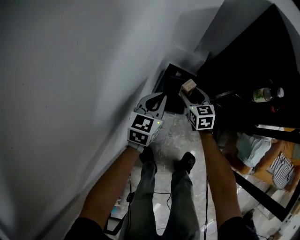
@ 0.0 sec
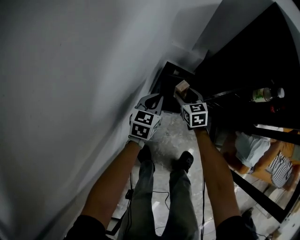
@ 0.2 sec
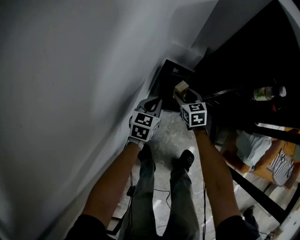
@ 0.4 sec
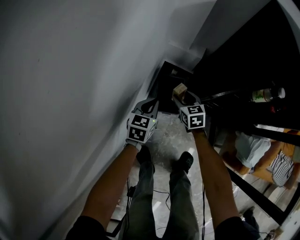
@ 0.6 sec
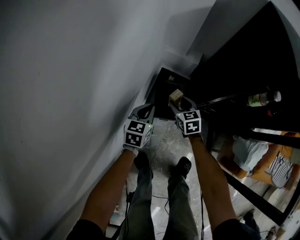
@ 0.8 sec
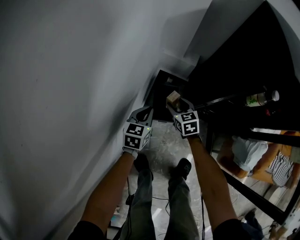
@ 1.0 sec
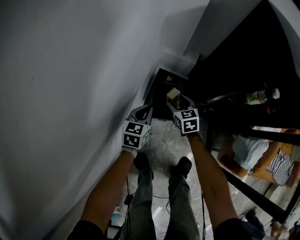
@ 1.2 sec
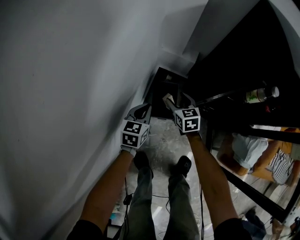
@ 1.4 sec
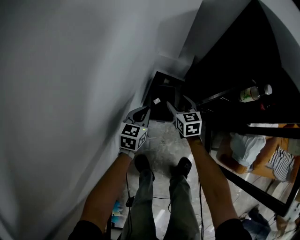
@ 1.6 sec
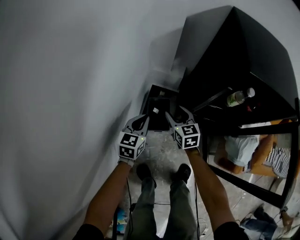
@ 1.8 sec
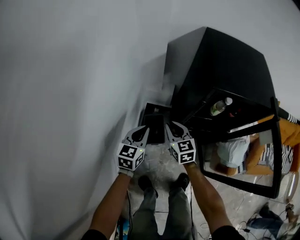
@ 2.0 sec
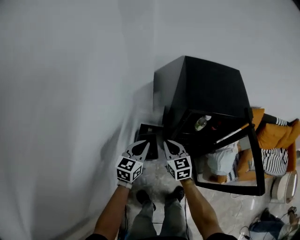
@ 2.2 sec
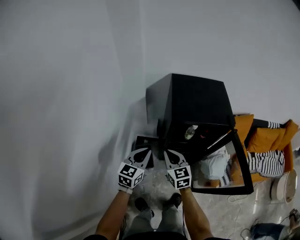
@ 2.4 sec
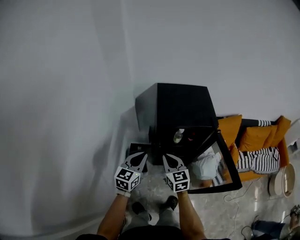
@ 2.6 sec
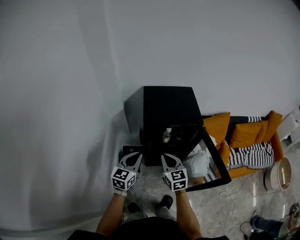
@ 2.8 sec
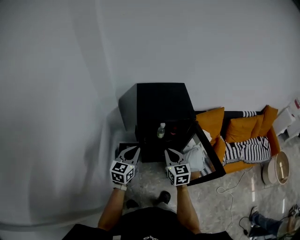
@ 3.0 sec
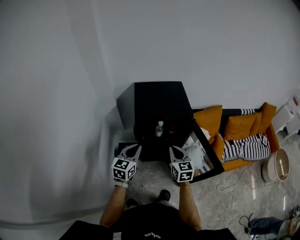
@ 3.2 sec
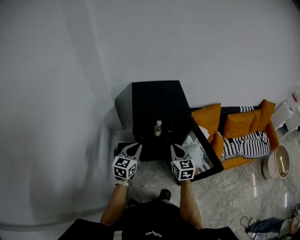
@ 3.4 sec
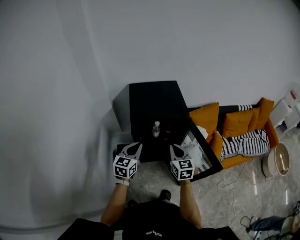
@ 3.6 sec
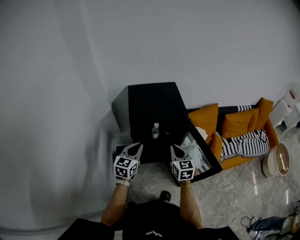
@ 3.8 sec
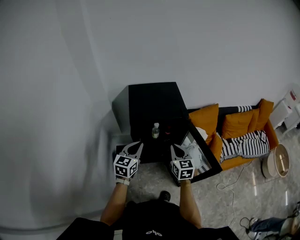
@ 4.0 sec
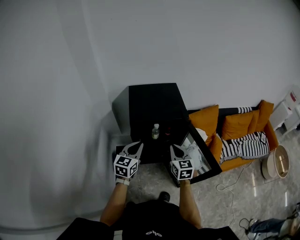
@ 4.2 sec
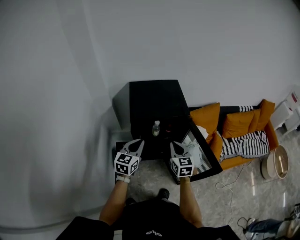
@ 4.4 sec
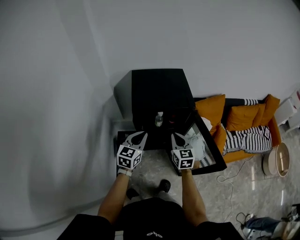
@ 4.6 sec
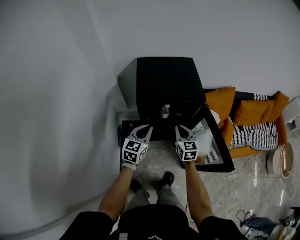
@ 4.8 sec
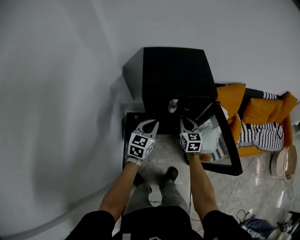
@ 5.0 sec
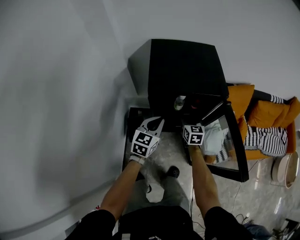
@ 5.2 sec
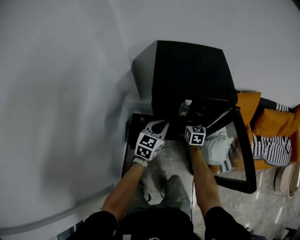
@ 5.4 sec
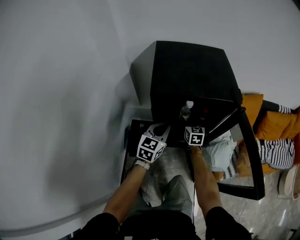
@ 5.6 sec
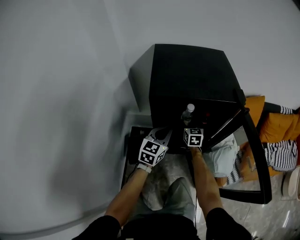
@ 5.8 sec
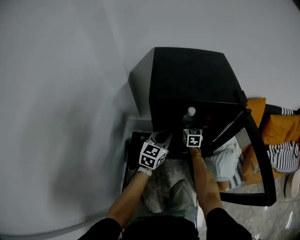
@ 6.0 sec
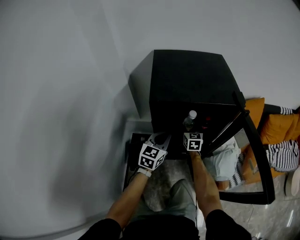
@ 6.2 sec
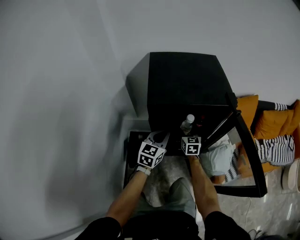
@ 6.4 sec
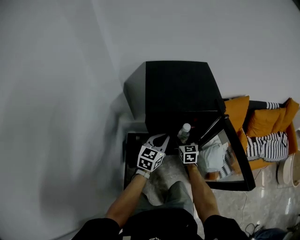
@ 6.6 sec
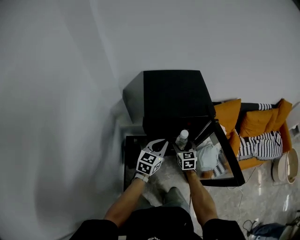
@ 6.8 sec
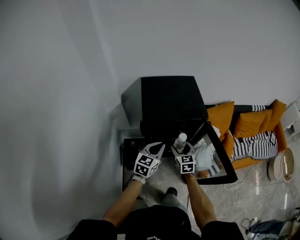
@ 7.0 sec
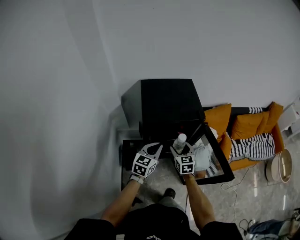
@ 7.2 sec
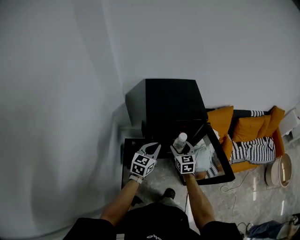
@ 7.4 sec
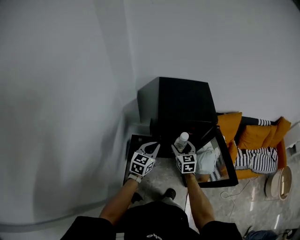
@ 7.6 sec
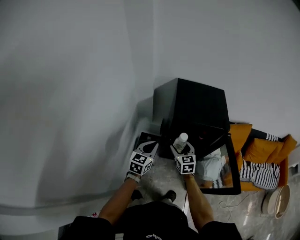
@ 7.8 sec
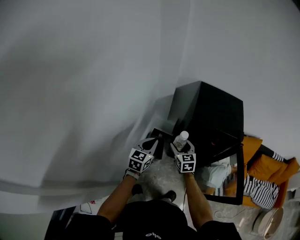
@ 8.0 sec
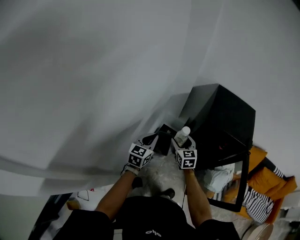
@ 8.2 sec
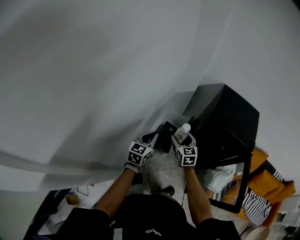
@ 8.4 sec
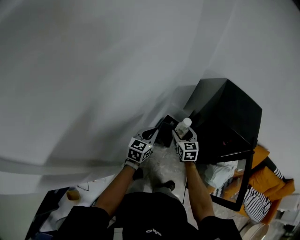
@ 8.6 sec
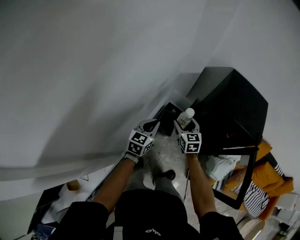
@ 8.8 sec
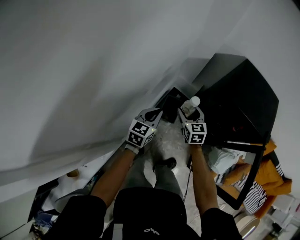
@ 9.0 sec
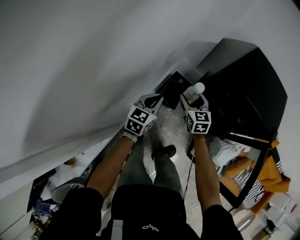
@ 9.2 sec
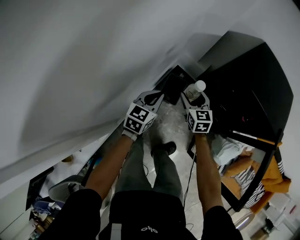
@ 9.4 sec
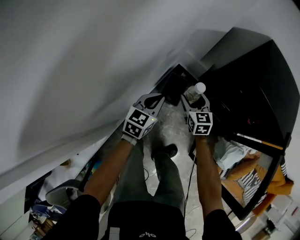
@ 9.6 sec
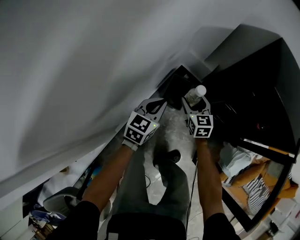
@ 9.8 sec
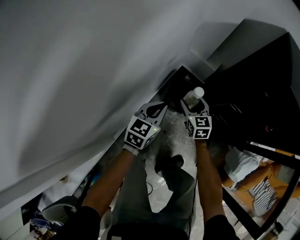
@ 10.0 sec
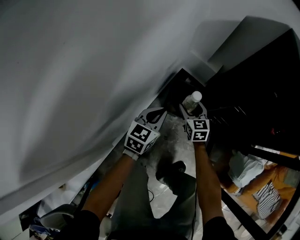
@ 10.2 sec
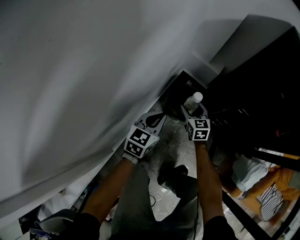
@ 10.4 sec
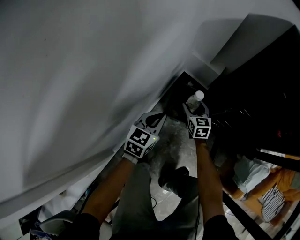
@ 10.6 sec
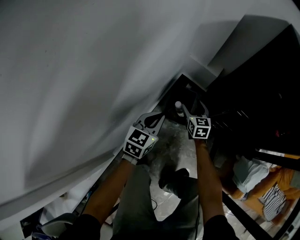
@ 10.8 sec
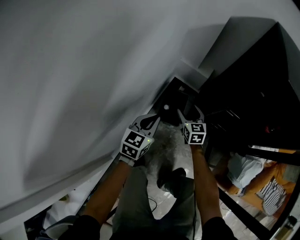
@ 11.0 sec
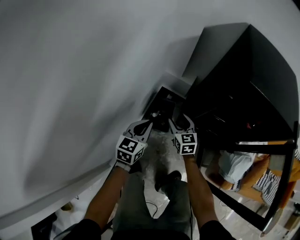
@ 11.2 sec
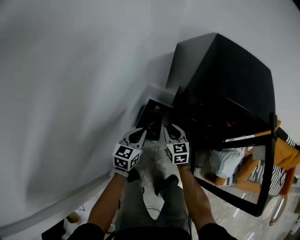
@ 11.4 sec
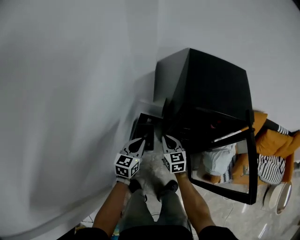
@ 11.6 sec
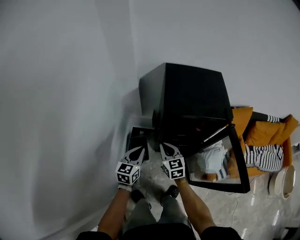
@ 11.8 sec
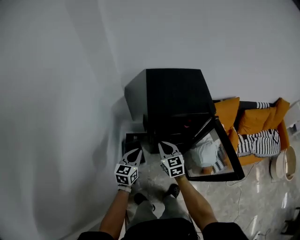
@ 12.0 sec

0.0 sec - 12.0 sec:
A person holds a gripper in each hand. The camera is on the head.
0.0 sec - 1.6 sec: The left gripper heads downward, covering some 5 cm.
1.6 sec - 3.0 sec: The grippers both shift upward and to the right by some 60 cm. The left gripper rotates about 30 degrees, while the right gripper changes its angle by roughly 30 degrees, and closes its fingers.
3.0 sec - 4.4 sec: The grippers both shift to the right by approximately 5 cm.
4.4 sec - 6.0 sec: The grippers both shift downward and forward by about 35 cm. The right gripper opens its fingers.
6.0 sec - 7.6 sec: Both grippers move upward and backward, some 30 cm.
7.6 sec - 9.0 sec: The right gripper moves some 30 cm, and turns by about 30 degrees; the left gripper moves about 25 cm, and rotates about 30 degrees.
9.0 sec - 10.4 sec: The grippers both shift downward by roughly 35 cm.
10.4 sec - 12.0 sec: The two grippers go about 40 cm upward and to the right. The right gripper swivels about 30 degrees, and closes; the left gripper swivels some 20 degrees.

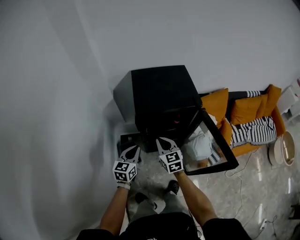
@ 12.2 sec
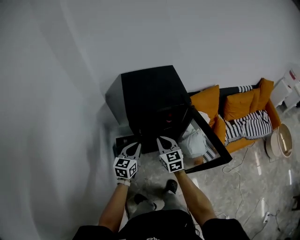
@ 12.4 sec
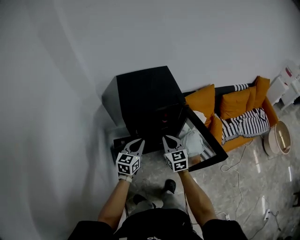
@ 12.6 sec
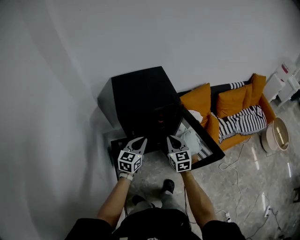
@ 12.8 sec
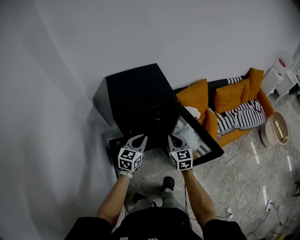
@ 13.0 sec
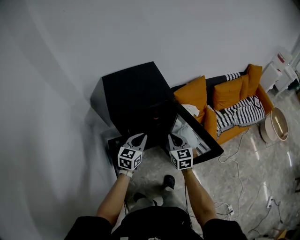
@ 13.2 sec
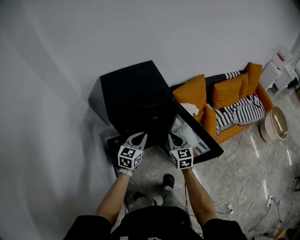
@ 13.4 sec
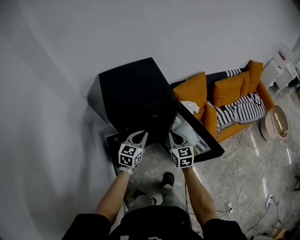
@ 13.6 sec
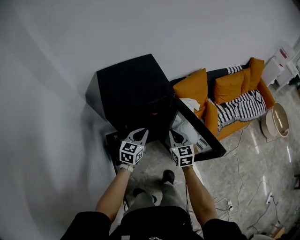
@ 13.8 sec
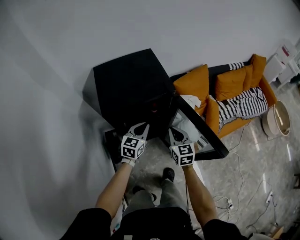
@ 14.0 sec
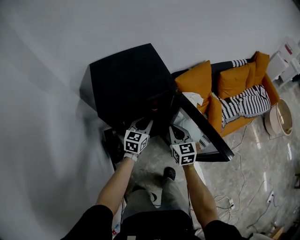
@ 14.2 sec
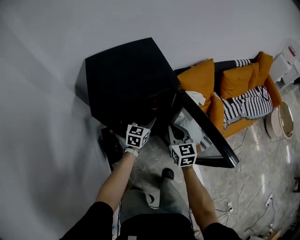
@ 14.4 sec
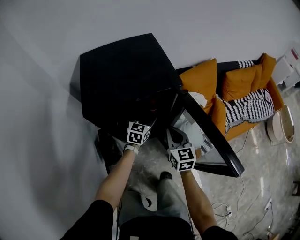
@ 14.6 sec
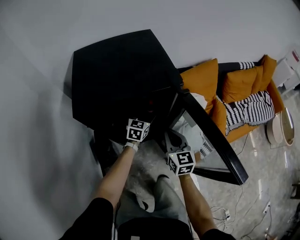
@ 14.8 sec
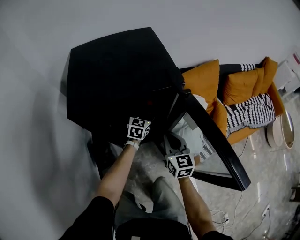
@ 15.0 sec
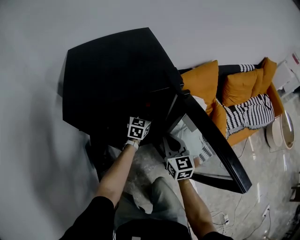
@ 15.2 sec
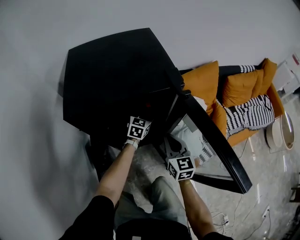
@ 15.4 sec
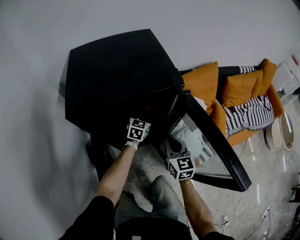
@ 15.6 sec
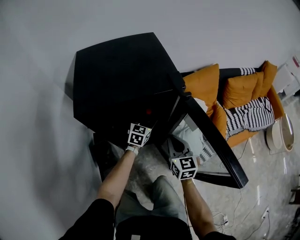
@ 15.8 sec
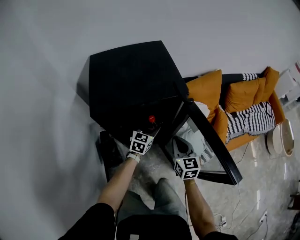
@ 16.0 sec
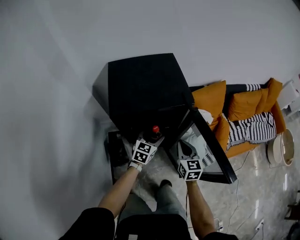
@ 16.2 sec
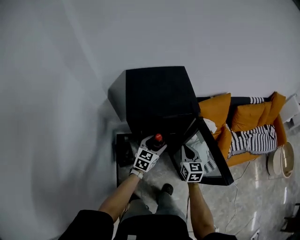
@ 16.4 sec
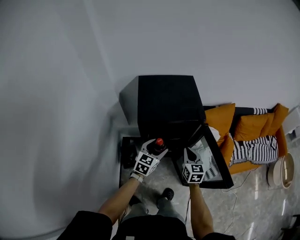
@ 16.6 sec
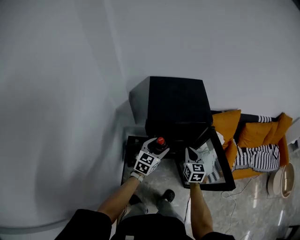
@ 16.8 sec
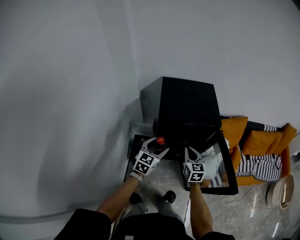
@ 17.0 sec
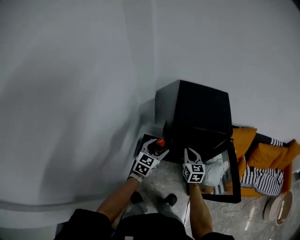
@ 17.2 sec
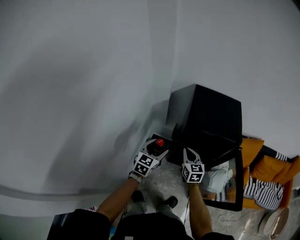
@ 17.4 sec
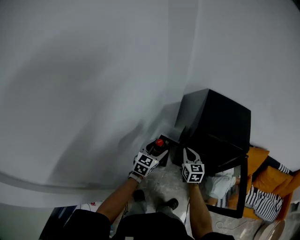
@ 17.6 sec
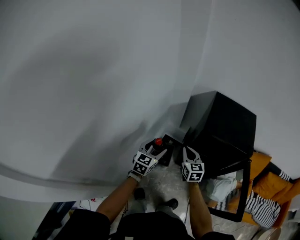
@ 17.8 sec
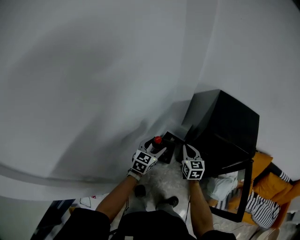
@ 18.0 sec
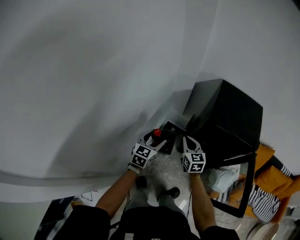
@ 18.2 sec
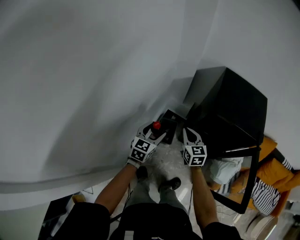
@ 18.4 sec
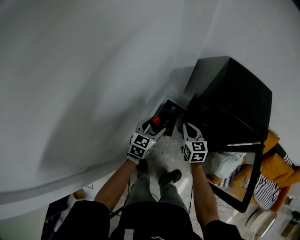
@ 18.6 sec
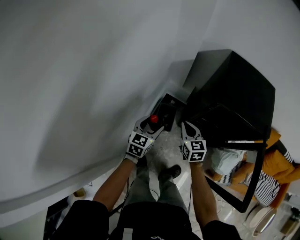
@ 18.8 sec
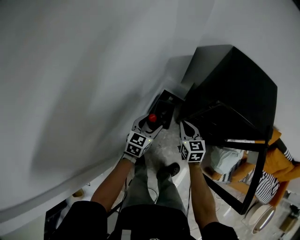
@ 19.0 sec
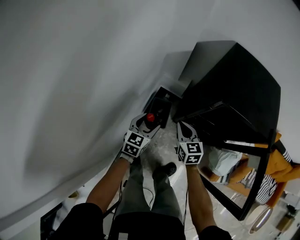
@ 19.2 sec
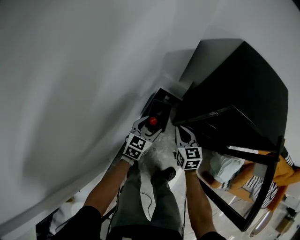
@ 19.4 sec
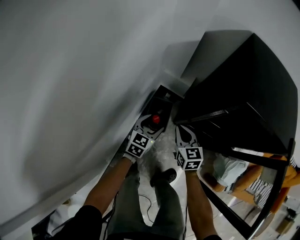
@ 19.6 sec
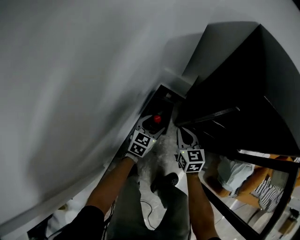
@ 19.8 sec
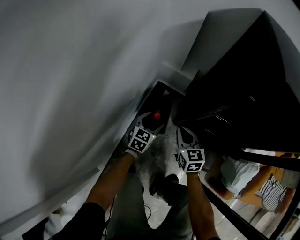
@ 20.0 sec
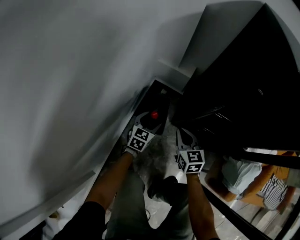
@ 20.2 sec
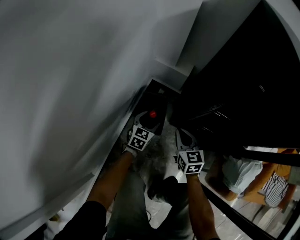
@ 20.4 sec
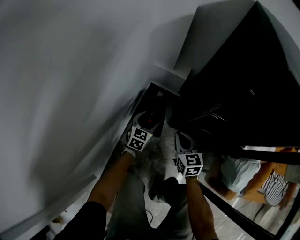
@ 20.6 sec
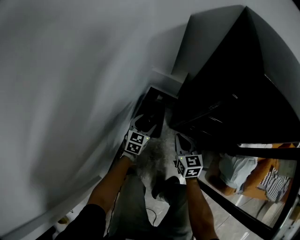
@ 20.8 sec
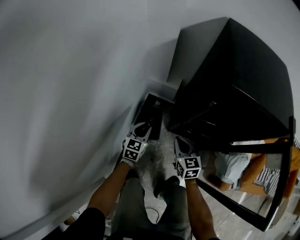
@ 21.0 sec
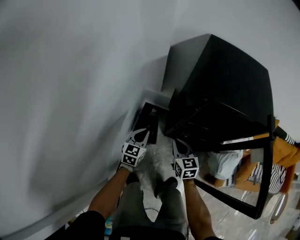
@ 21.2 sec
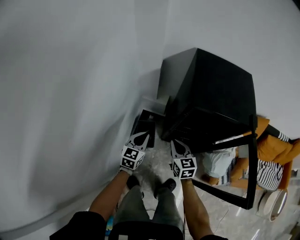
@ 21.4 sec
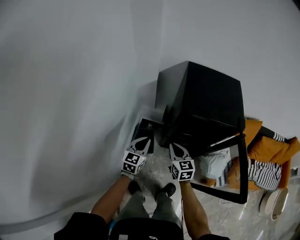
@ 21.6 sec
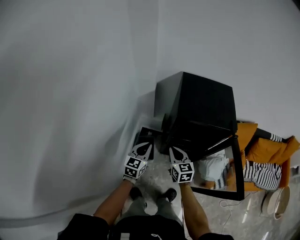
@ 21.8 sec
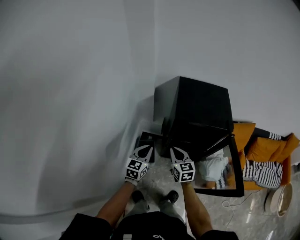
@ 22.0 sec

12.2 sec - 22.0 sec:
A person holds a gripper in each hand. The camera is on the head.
12.2 sec - 13.6 sec: The left gripper is displaced to the right and forward by approximately 20 cm, and rotates roughly 20 degrees, while the right gripper is displaced to the right by approximately 20 cm.
13.6 sec - 15.0 sec: The right gripper goes roughly 20 cm downward and forward; the left gripper goes about 35 cm downward and forward, and opens.
15.0 sec - 16.4 sec: The left gripper shifts about 30 cm upward and backward. Meanwhile the right gripper travels upward by roughly 15 cm.
16.4 sec - 17.8 sec: The right gripper changes place by about 35 cm, and swivels roughly 40 degrees. Meanwhile the left gripper changes place by roughly 35 cm, and swivels some 40 degrees.
17.8 sec - 19.2 sec: The grippers both shift downward by about 20 cm.
19.2 sec - 20.6 sec: Both grippers move downward, roughly 35 cm.
20.6 sec - 22.0 sec: The two grippers go about 50 cm upward. The left gripper closes its fingers.

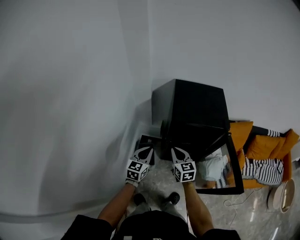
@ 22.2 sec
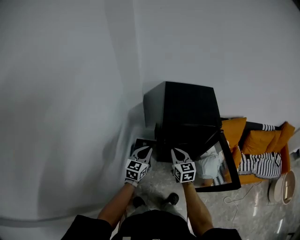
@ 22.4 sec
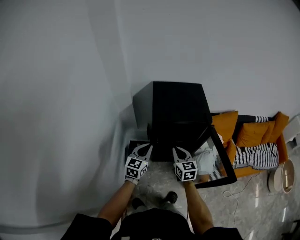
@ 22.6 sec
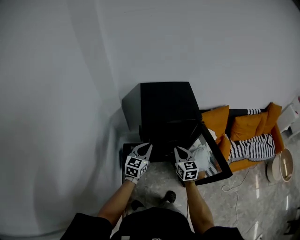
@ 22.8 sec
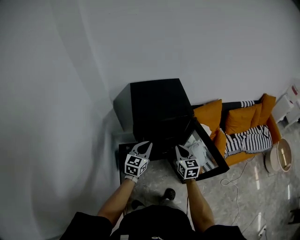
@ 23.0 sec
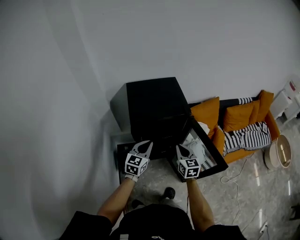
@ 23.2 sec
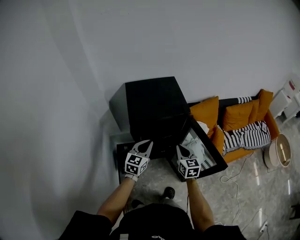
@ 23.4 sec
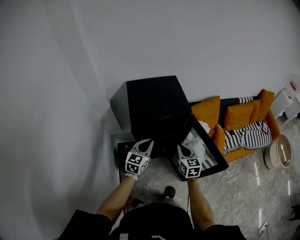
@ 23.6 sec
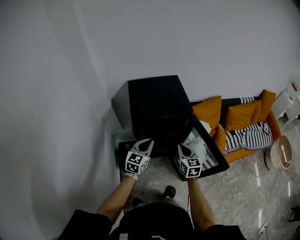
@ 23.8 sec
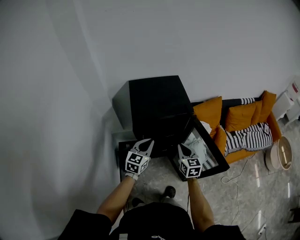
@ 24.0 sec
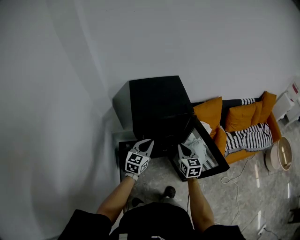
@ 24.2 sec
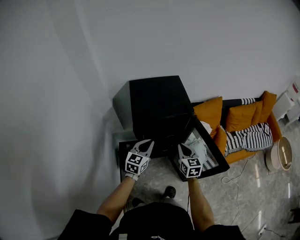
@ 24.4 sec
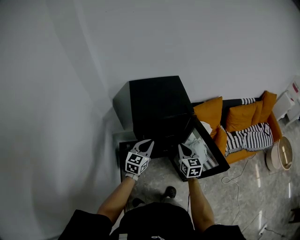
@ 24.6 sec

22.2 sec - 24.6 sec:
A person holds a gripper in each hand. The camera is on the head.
22.2 sec - 23.4 sec: Both grippers travel together to the right, about 20 cm. The left gripper changes its angle by about 20 degrees. Meanwhile the right gripper changes its angle by roughly 20 degrees.
23.4 sec - 24.6 sec: Both grippers stay about where they are.
